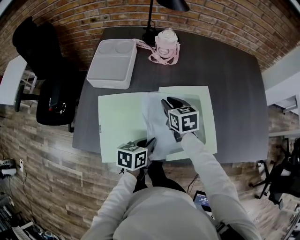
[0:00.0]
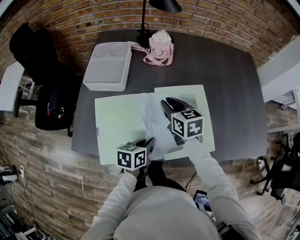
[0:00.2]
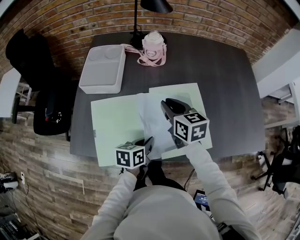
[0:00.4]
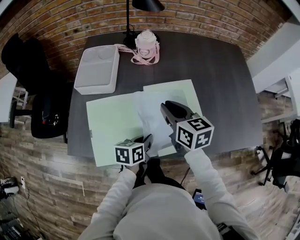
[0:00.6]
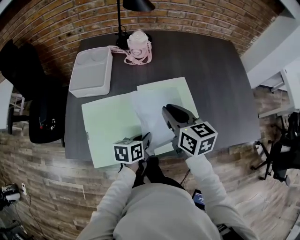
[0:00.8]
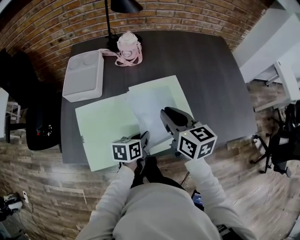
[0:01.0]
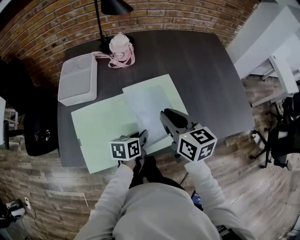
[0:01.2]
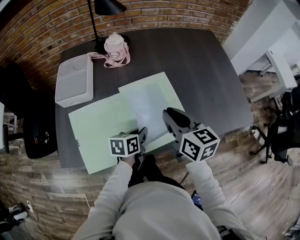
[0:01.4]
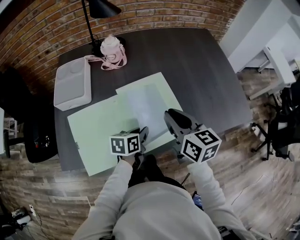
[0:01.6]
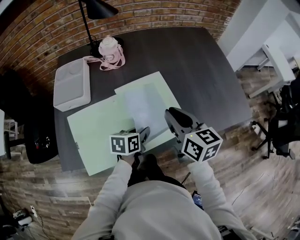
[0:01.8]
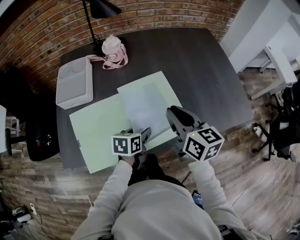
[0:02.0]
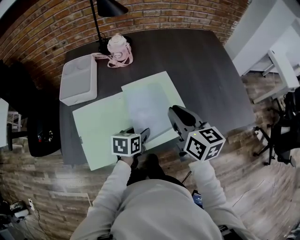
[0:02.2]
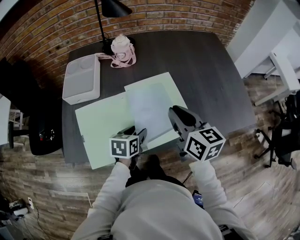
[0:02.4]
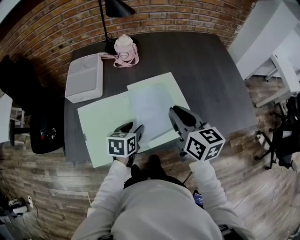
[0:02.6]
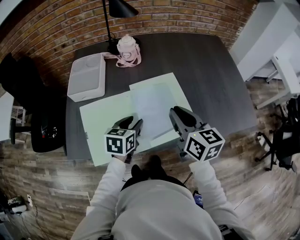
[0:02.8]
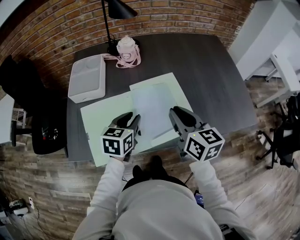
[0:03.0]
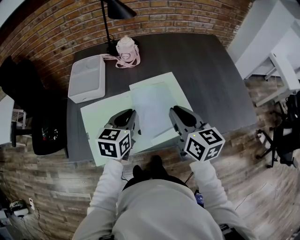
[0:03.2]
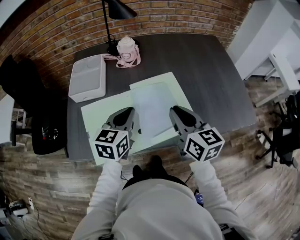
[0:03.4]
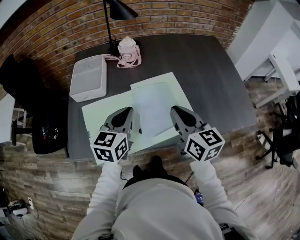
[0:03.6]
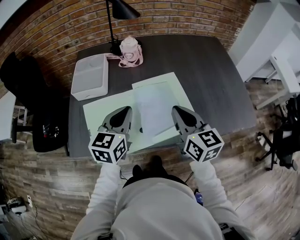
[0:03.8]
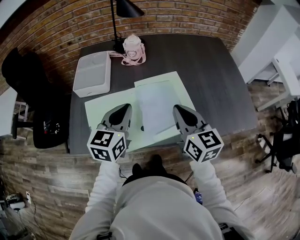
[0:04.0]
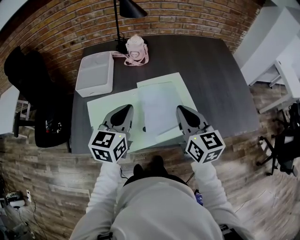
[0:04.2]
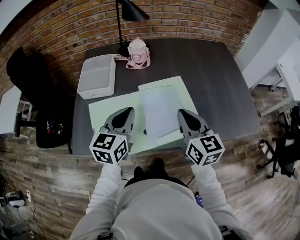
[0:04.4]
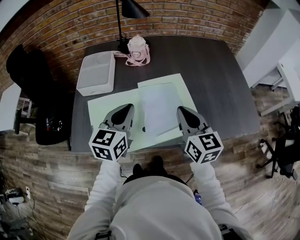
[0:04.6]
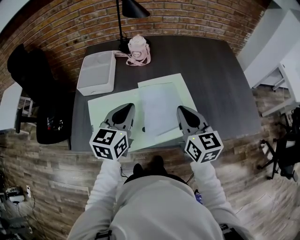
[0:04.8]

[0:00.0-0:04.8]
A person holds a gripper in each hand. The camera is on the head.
0:00.0 to 0:01.6: The left gripper travels to the right by approximately 10 cm; the right gripper moves to the right, upward and backward, approximately 25 cm, and swivels about 30 degrees.
0:01.6 to 0:03.2: The left gripper is displaced upward and to the left by approximately 15 cm, swivels some 30 degrees, and opens, then closes once more.
0:03.2 to 0:04.8: The left gripper heads upward, covering approximately 5 cm.

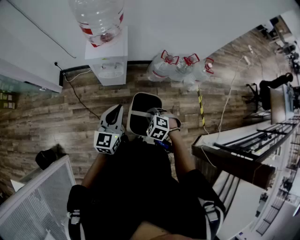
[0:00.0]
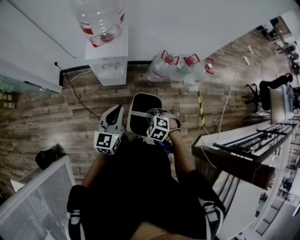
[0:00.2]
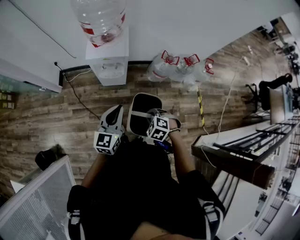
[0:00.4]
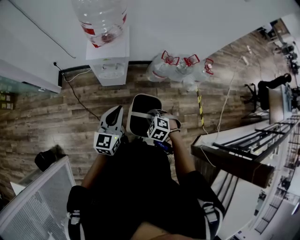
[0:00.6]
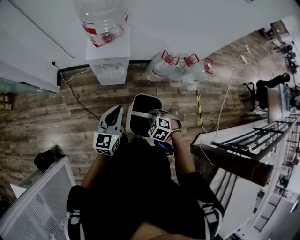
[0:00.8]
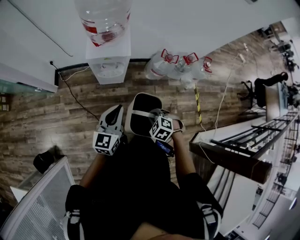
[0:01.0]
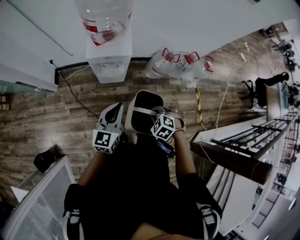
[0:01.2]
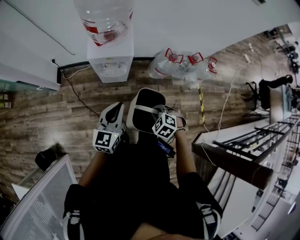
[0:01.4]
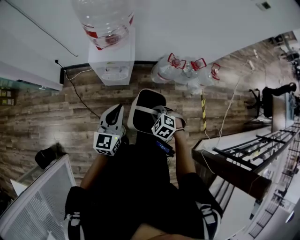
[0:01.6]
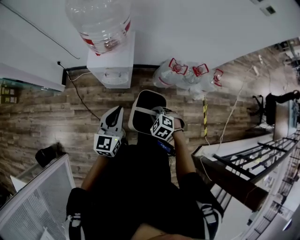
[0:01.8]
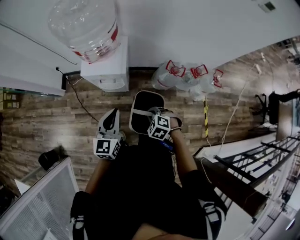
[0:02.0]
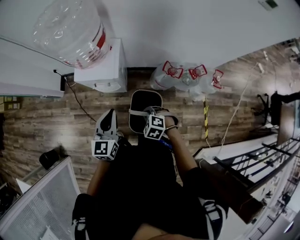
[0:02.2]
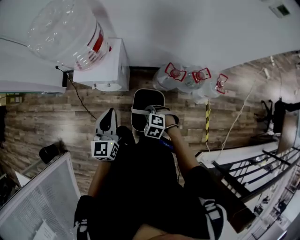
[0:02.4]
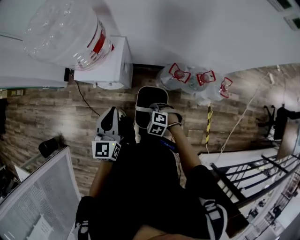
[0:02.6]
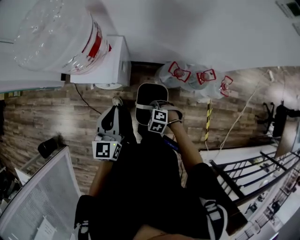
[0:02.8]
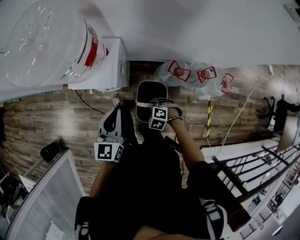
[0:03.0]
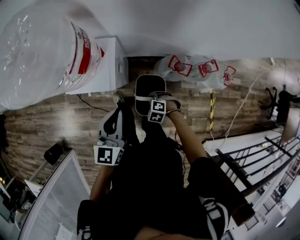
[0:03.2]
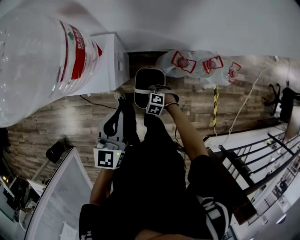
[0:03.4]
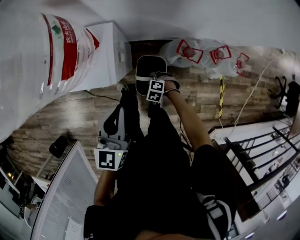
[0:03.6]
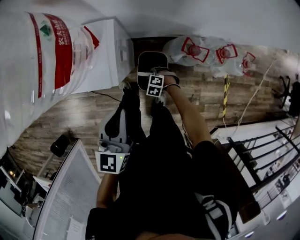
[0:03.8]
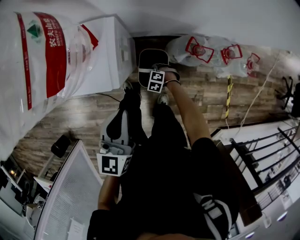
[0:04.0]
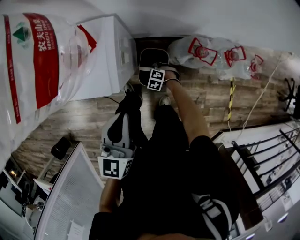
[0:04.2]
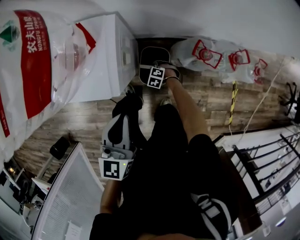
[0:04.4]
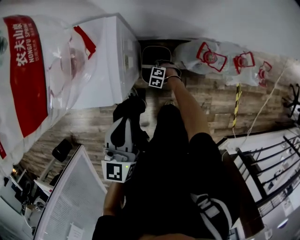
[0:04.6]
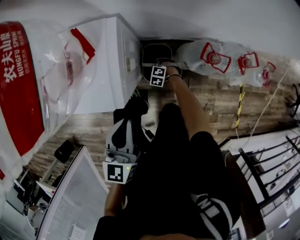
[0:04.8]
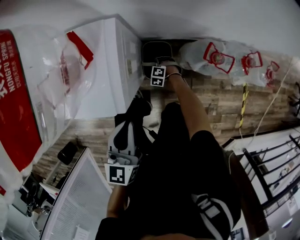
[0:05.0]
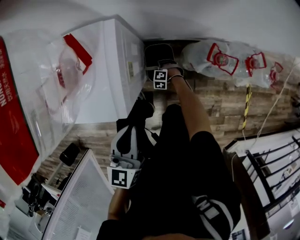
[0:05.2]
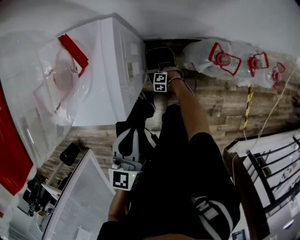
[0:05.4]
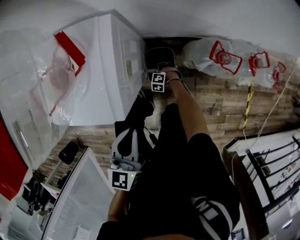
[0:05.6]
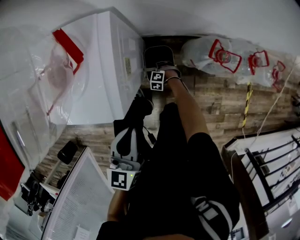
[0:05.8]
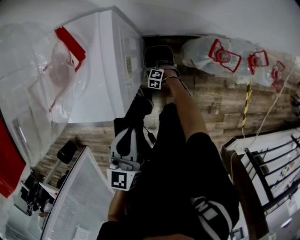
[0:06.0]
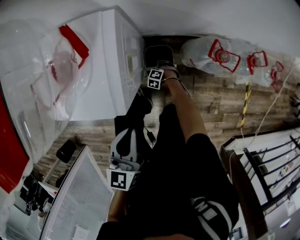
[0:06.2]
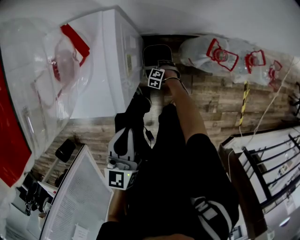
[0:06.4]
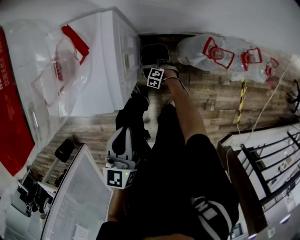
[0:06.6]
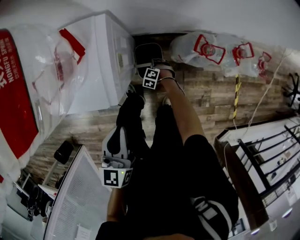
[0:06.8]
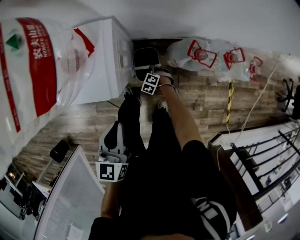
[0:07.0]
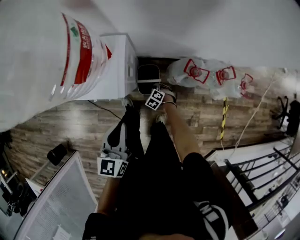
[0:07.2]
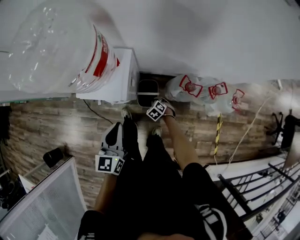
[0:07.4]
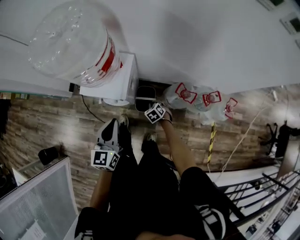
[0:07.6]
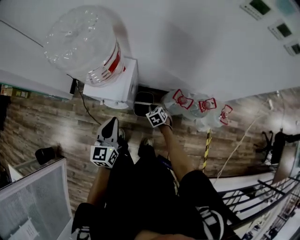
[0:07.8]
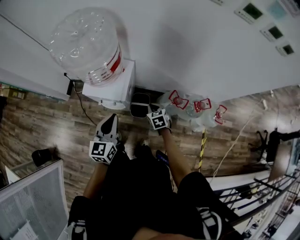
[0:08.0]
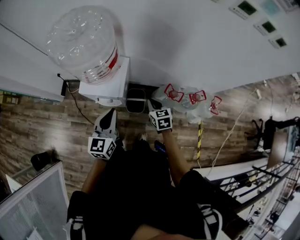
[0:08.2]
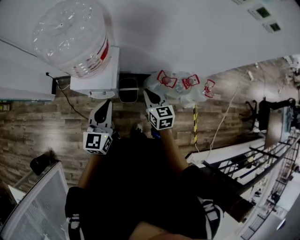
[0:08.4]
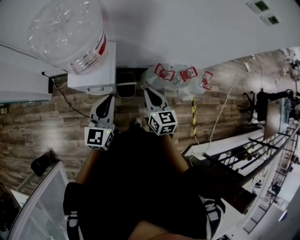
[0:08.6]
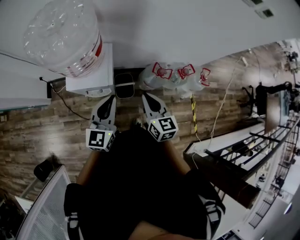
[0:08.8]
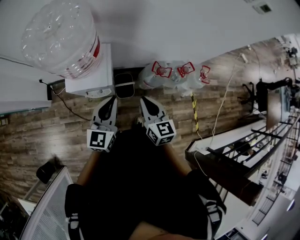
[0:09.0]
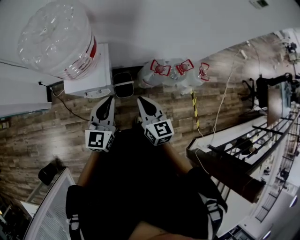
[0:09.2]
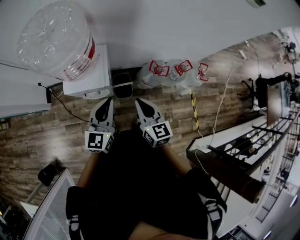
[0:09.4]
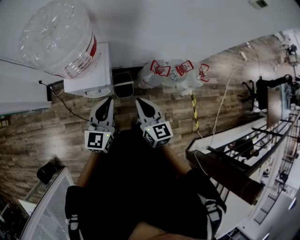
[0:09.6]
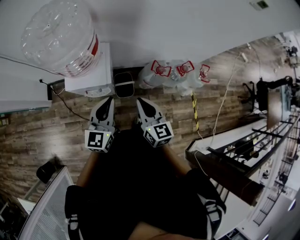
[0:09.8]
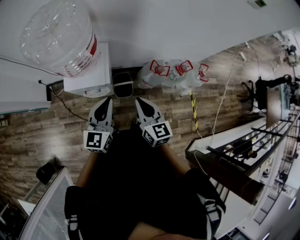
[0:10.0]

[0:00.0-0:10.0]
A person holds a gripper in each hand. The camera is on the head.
0:00.0 to 0:01.4: Both grippers travel together forward, approximately 5 cm.
0:01.4 to 0:02.8: The left gripper moves to the right and forward, some 25 cm, and swivels roughly 20 degrees; the right gripper shifts approximately 25 cm forward, to the right and downward.
0:02.8 to 0:04.2: The right gripper goes some 35 cm downward. Meanwhile the left gripper heads downward, covering about 15 cm.
0:04.2 to 0:05.8: Both grippers move downward, some 15 cm.
0:05.8 to 0:07.2: The right gripper moves upward, some 20 cm, turns by roughly 20 degrees, and opens, then closes again; the left gripper goes approximately 15 cm upward.
0:07.2 to 0:08.6: The left gripper moves upward, approximately 15 cm, while the right gripper travels upward by about 50 cm, and tilts its fingers roughly 50 degrees upward.
0:08.6 to 0:10.0: The right gripper is displaced backward by about 5 cm.

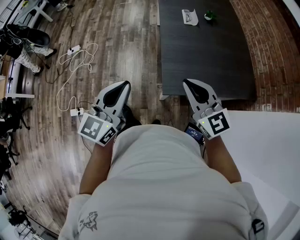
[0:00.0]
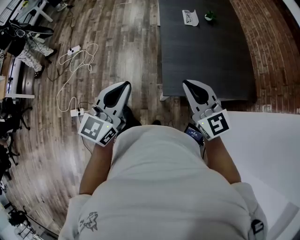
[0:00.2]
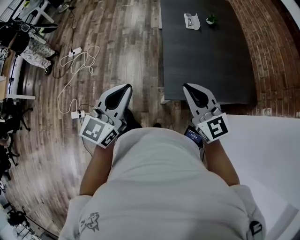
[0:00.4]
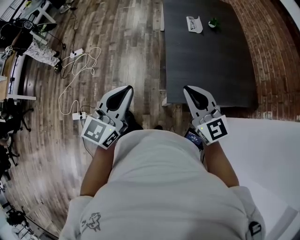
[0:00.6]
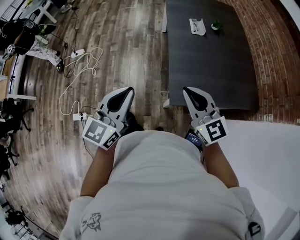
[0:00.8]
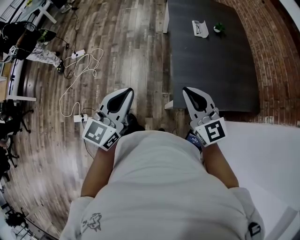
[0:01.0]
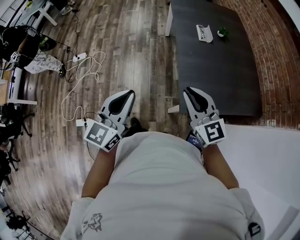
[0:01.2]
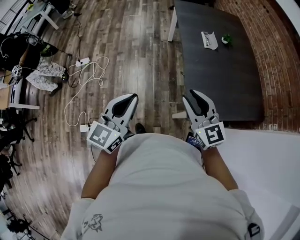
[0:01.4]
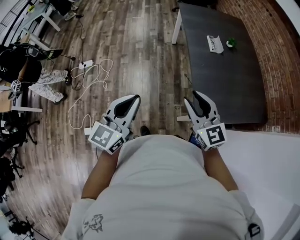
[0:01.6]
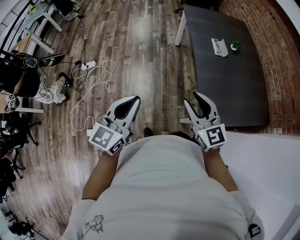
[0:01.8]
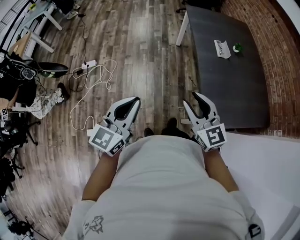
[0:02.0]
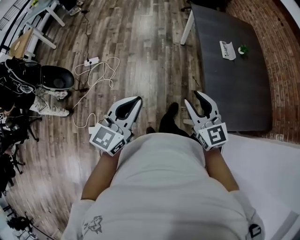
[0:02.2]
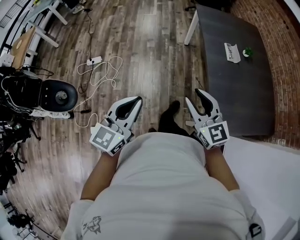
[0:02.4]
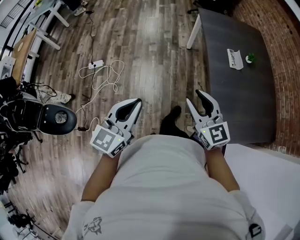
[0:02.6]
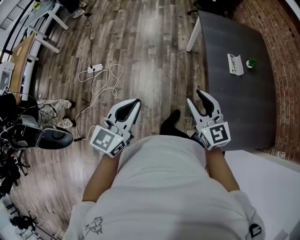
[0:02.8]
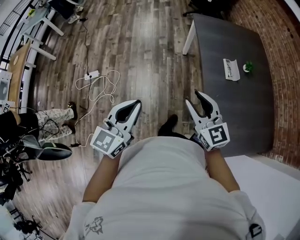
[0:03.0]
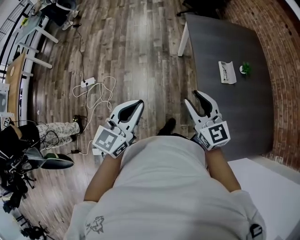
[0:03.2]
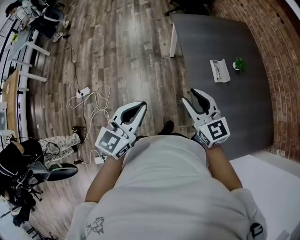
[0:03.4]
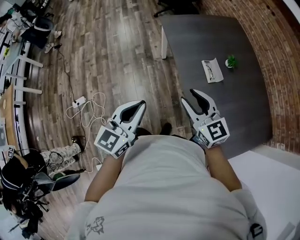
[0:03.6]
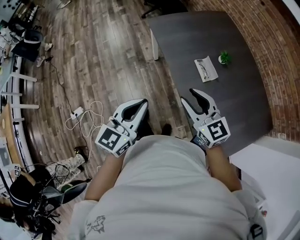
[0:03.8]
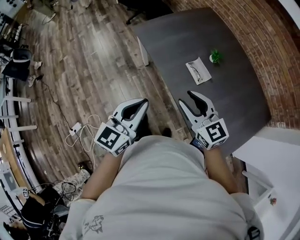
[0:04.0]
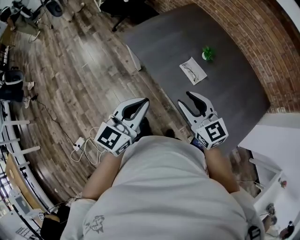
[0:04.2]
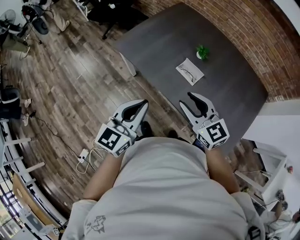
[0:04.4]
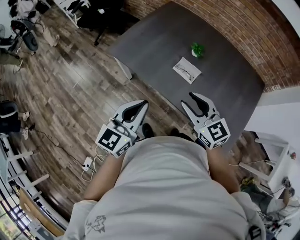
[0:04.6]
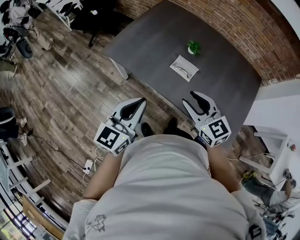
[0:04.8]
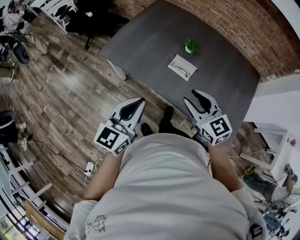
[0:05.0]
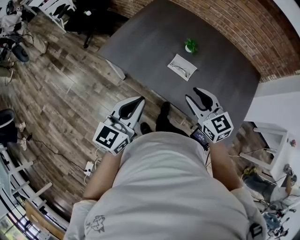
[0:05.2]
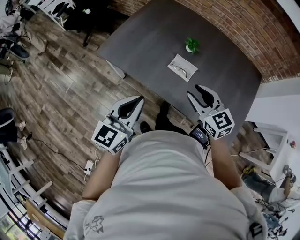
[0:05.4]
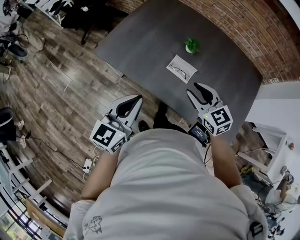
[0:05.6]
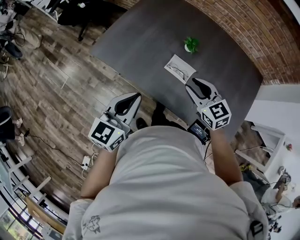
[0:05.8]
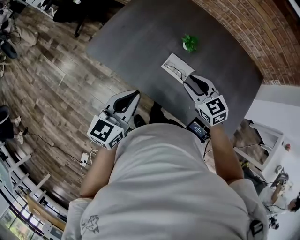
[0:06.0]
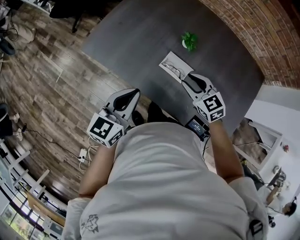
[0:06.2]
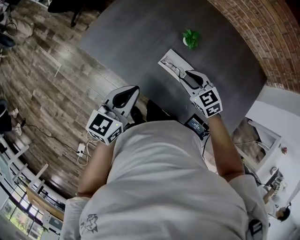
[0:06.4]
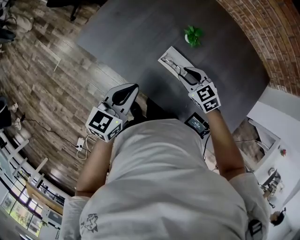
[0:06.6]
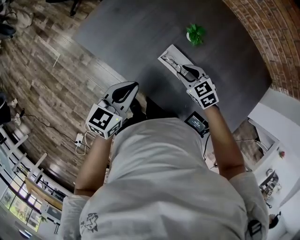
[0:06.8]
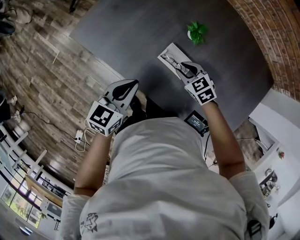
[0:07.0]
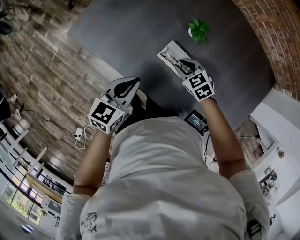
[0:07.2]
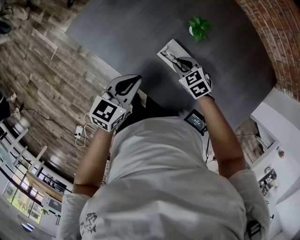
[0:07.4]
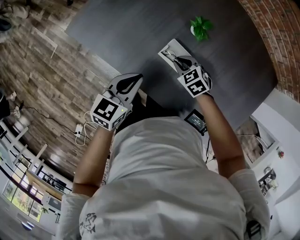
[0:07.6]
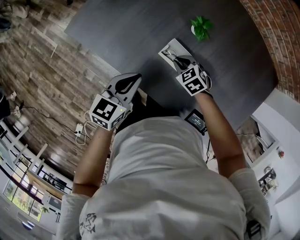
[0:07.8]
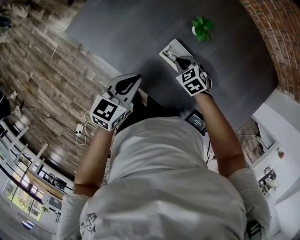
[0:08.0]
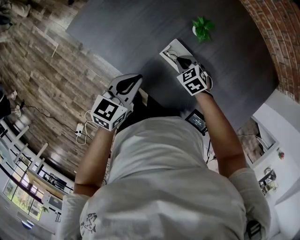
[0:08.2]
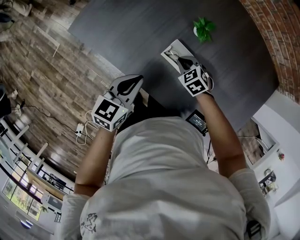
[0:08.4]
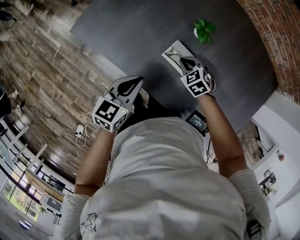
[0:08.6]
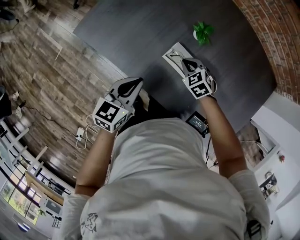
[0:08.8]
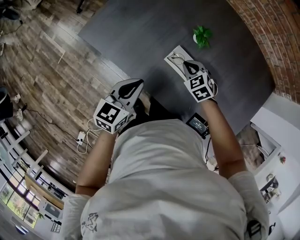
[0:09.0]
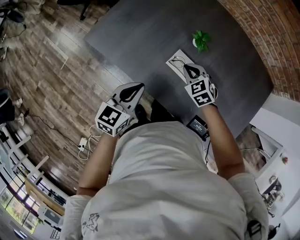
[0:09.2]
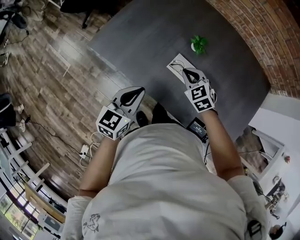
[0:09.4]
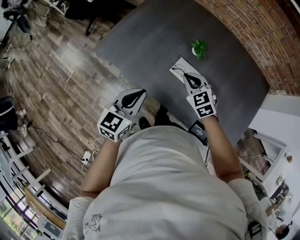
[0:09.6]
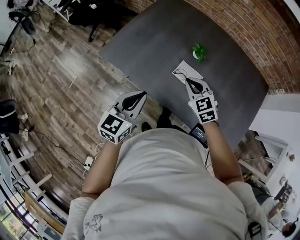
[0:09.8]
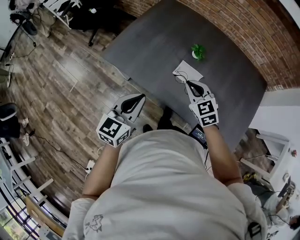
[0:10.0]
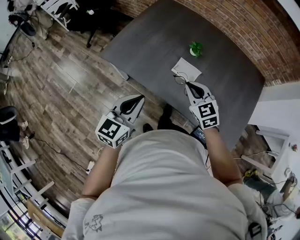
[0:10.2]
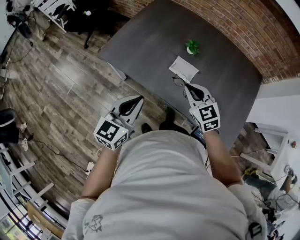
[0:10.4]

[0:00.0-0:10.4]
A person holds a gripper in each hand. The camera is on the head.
0:00.0 to 0:01.4: Both grippers travel together to the left and forward, roughly 15 cm. The right gripper opens its fingers.
0:01.4 to 0:03.0: The left gripper moves forward and to the left, some 25 cm. Meanwhile the right gripper shifts some 25 cm forward.
0:03.0 to 0:04.4: The right gripper shifts by about 25 cm, and turns by some 40 degrees. The left gripper changes place by roughly 40 cm, and rotates some 50 degrees.
0:04.4 to 0:06.0: The left gripper goes roughly 15 cm forward and downward. The right gripper shifts some 20 cm forward, downward and to the right.
0:06.0 to 0:07.4: The right gripper travels downward by approximately 20 cm, and swivels some 30 degrees. Meanwhile the left gripper shifts about 15 cm downward, forward and to the right.
0:07.4 to 0:09.0: The grippers make only small movements.
0:09.0 to 0:10.4: The right gripper heads upward and backward, covering approximately 25 cm, and swivels roughly 30 degrees. The left gripper is displaced backward, upward and to the left by approximately 20 cm.
